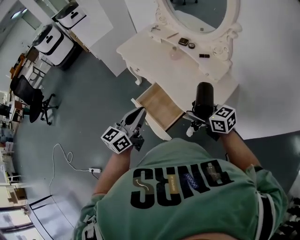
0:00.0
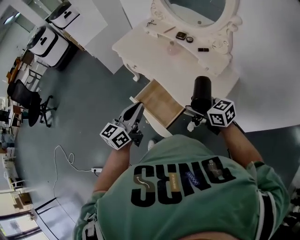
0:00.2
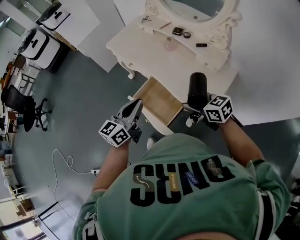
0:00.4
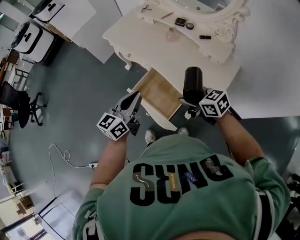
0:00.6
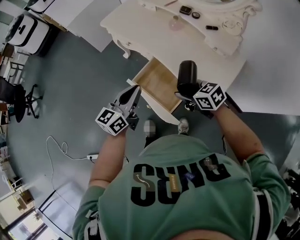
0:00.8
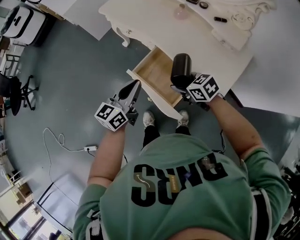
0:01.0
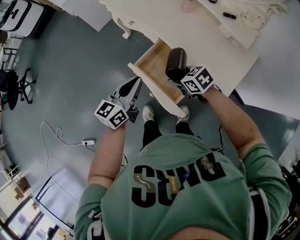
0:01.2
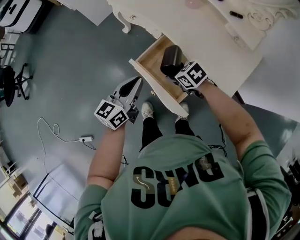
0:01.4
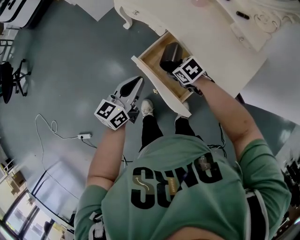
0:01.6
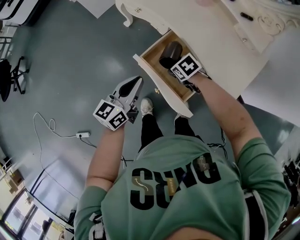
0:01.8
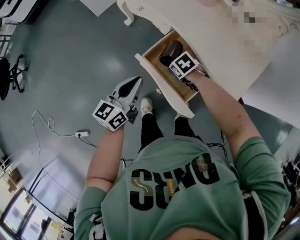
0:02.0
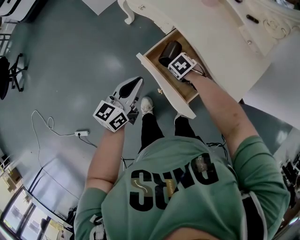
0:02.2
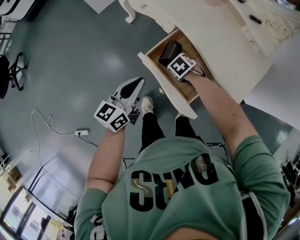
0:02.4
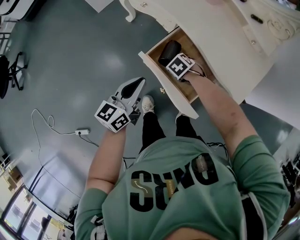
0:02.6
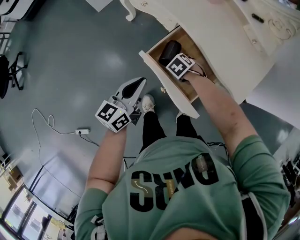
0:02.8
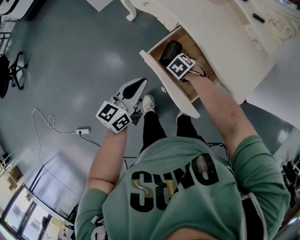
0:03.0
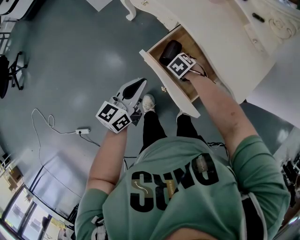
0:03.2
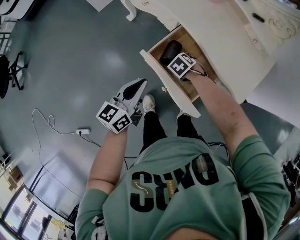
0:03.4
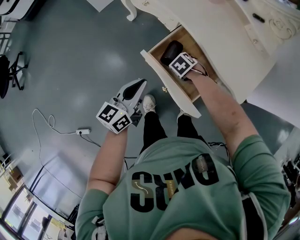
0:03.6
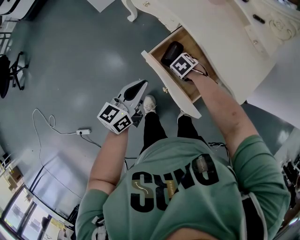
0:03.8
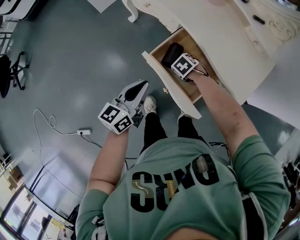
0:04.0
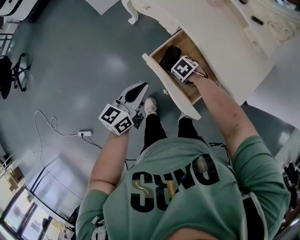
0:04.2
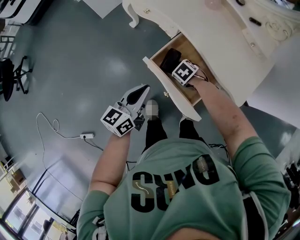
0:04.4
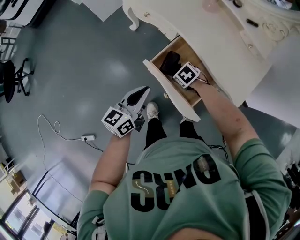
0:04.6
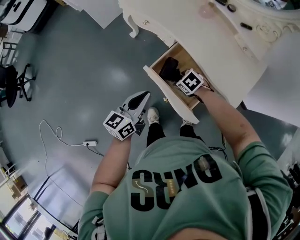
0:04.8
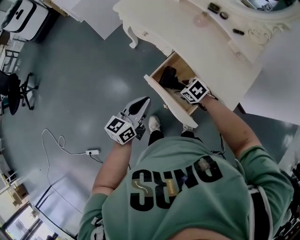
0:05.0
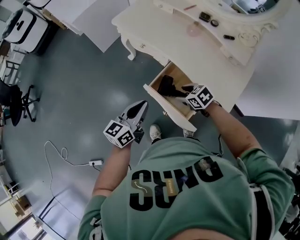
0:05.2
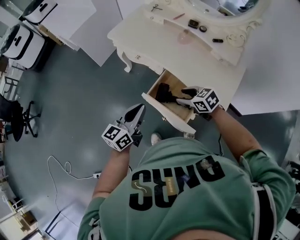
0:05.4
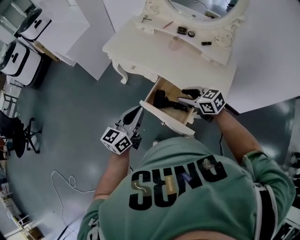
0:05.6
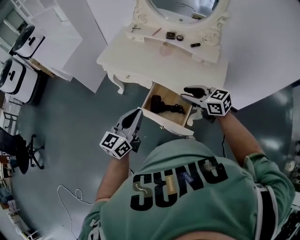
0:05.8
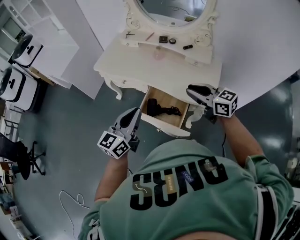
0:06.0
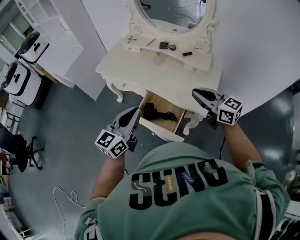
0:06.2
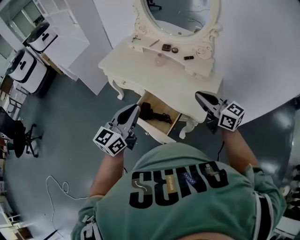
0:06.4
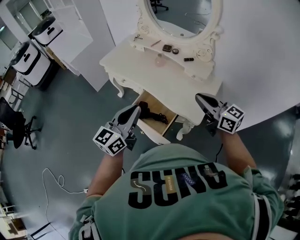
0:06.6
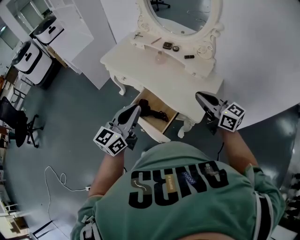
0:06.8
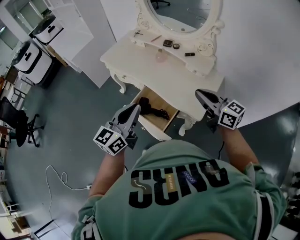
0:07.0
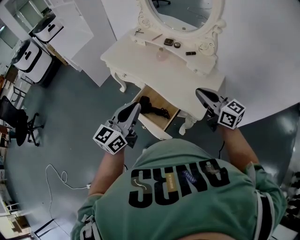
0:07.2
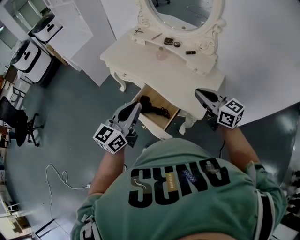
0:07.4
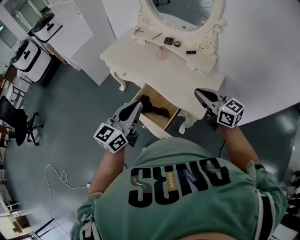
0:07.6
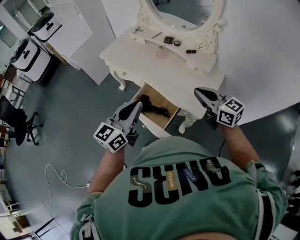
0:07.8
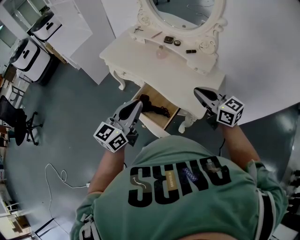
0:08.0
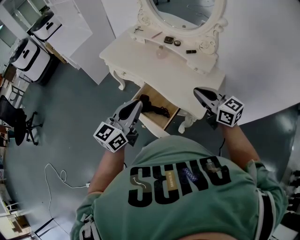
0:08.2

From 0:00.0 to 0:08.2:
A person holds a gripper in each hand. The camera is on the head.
From 0:00.0 to 0:01.6: Both grippers travel together downward, to the left and forward, about 30 cm. The right gripper points its fingers about 40 degrees further downward.
From 0:01.6 to 0:03.2: The left gripper ends up approximately 5 cm from where it was. Meanwhile the right gripper is displaced downward by some 10 cm, and turns by approximately 20 degrees.
From 0:03.2 to 0:05.0: The right gripper travels upward by some 15 cm, and changes its angle by some 20 degrees, while the left gripper shifts about 5 cm upward.
From 0:05.0 to 0:06.6: The right gripper is displaced upward by approximately 40 cm, angles its fingers upward, by roughly 60 degrees, and closes its fingers; the left gripper shifts roughly 25 cm upward, and turns by about 20 degrees.
From 0:06.6 to 0:08.2: There are only small adjustments of the grippers.

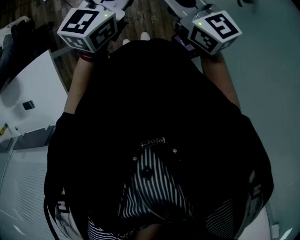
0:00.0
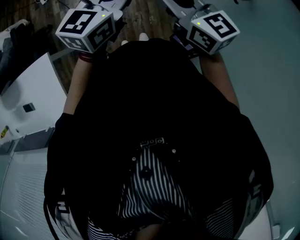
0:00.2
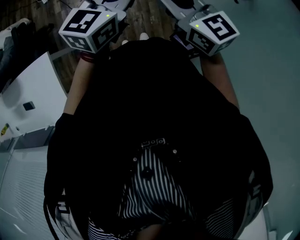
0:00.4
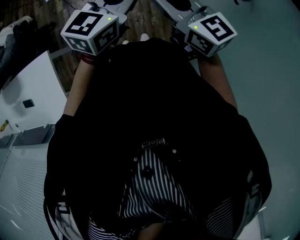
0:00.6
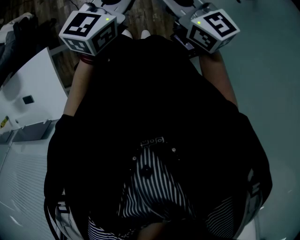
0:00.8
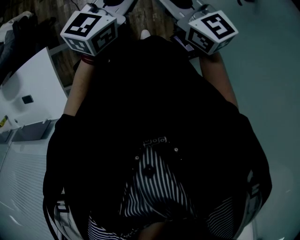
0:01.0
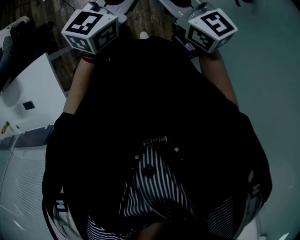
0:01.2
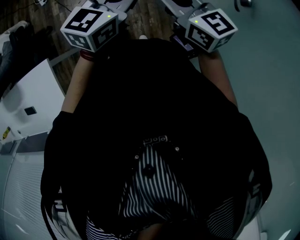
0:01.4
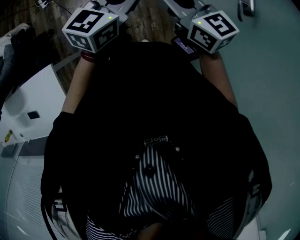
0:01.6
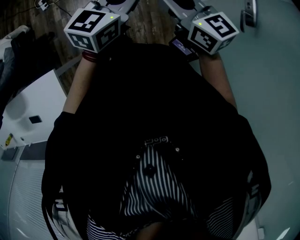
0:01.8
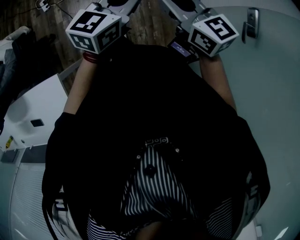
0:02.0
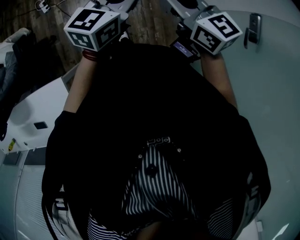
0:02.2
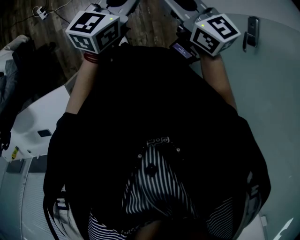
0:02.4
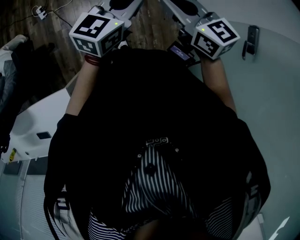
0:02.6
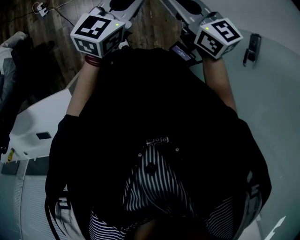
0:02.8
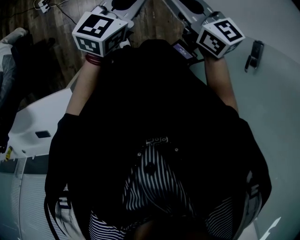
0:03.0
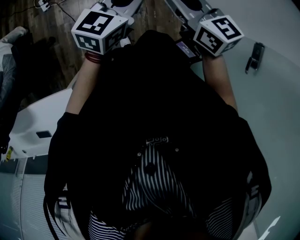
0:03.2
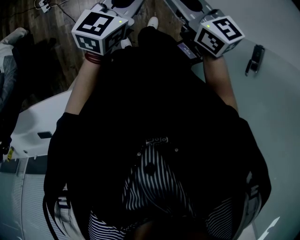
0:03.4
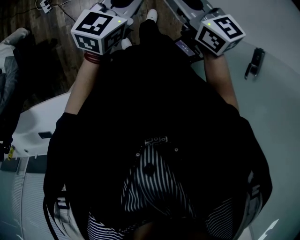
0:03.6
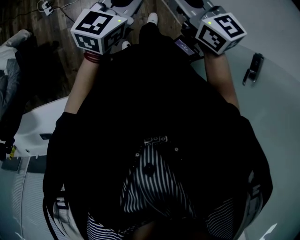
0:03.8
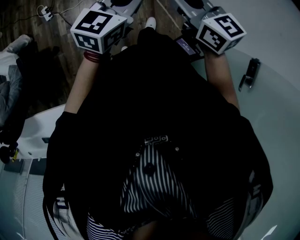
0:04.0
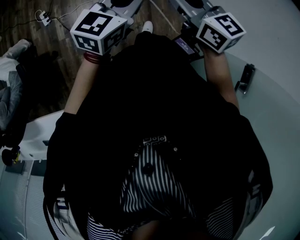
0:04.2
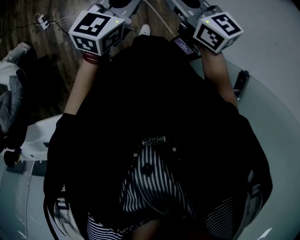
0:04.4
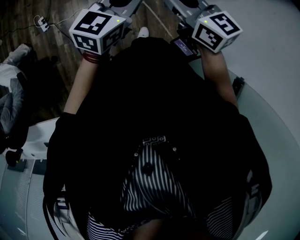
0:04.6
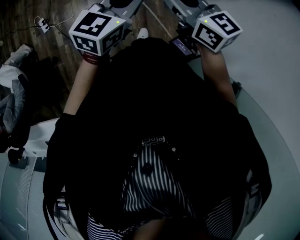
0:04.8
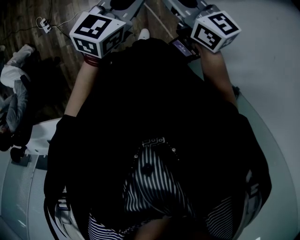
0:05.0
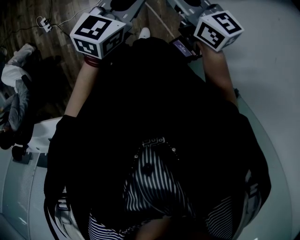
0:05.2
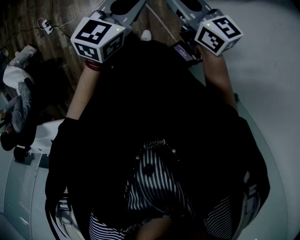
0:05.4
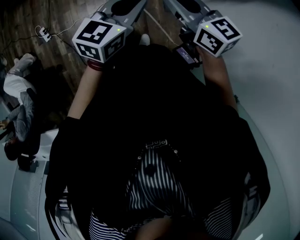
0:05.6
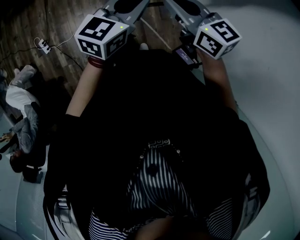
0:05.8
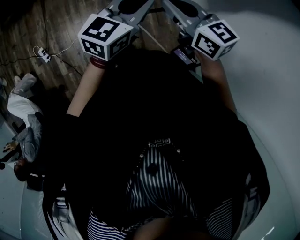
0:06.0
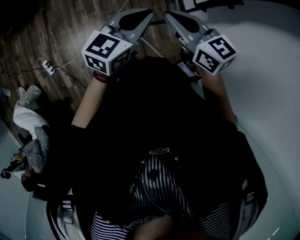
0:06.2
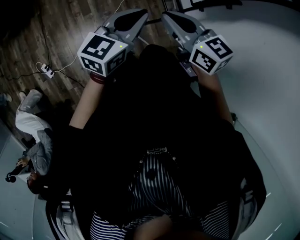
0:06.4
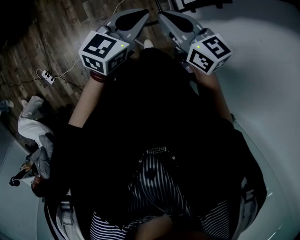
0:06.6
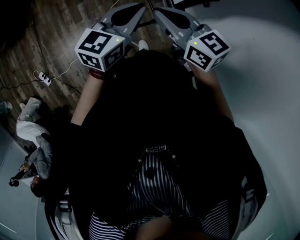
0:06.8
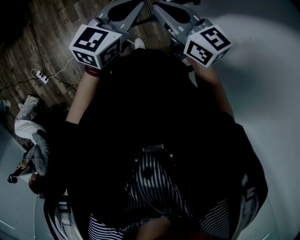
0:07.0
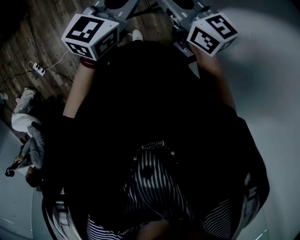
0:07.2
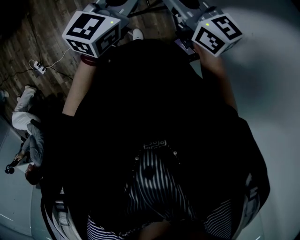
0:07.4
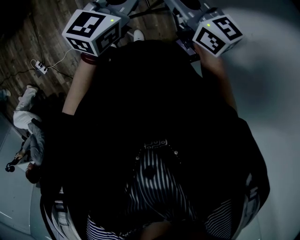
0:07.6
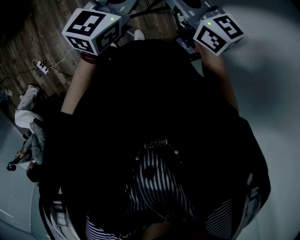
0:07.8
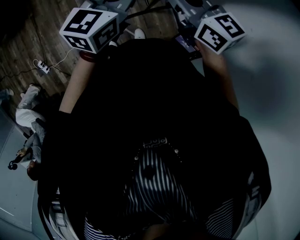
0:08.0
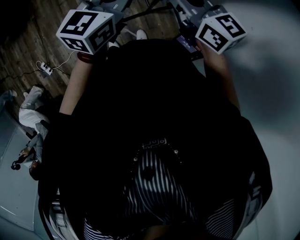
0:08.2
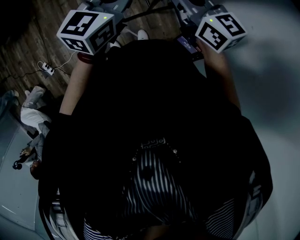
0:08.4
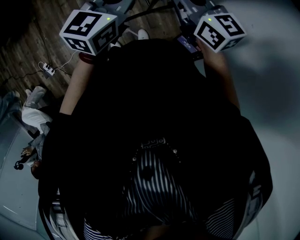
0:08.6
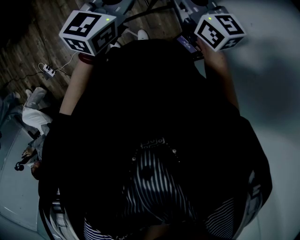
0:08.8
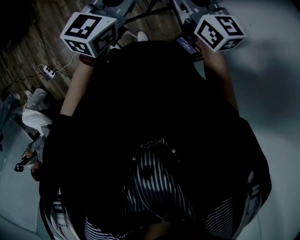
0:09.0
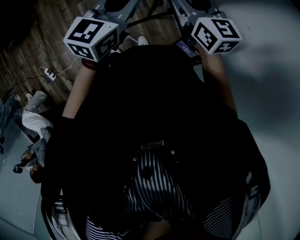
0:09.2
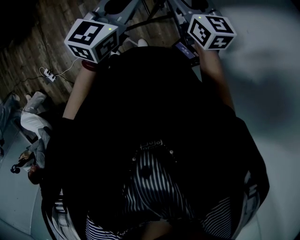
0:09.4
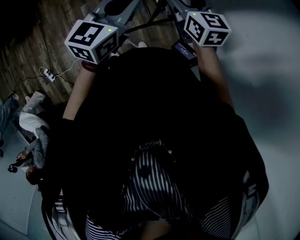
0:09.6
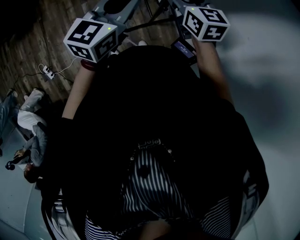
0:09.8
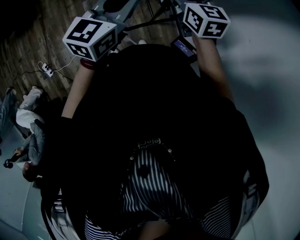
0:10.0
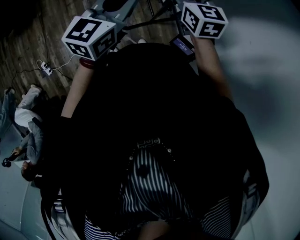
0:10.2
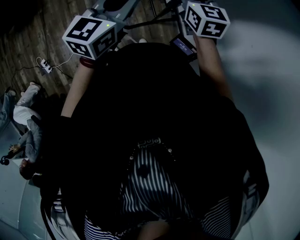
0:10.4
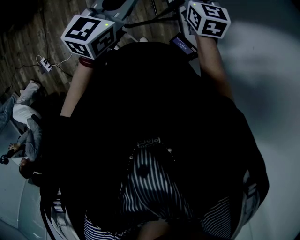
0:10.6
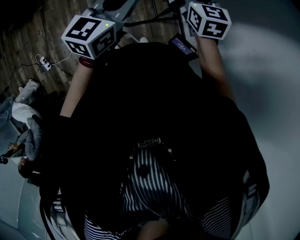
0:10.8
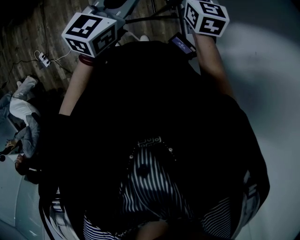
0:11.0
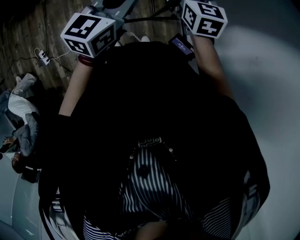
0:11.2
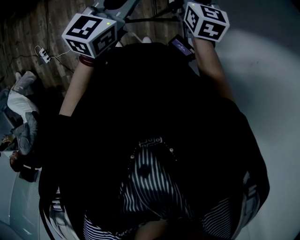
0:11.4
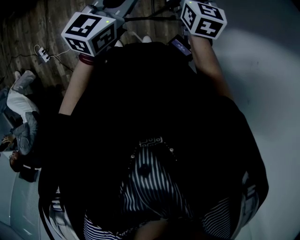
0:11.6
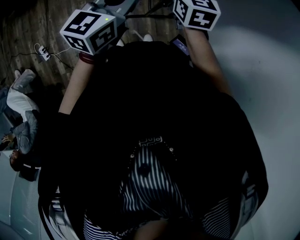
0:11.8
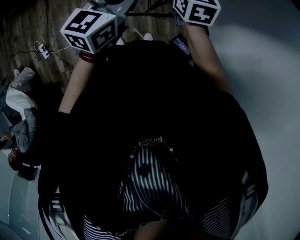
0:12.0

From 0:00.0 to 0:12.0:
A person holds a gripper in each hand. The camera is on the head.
From 0:00.0 to 0:01.6: The two grippers go approximately 10 cm forward.
From 0:01.6 to 0:03.0: Both grippers travel together forward and to the left, some 30 cm.
From 0:03.0 to 0:04.4: Both grippers travel together forward and to the right, about 20 cm.
From 0:04.4 to 0:06.0: The two grippers go some 15 cm forward and to the right.
From 0:06.0 to 0:07.6: The right gripper heads to the right and forward, covering about 20 cm, while the left gripper heads forward and to the right, covering some 20 cm.
From 0:07.6 to 0:09.0: The right gripper moves to the right, some 10 cm, and opens its fingers.
From 0:09.0 to 0:10.4: The right gripper is displaced forward and to the left by about 10 cm, while the left gripper heads to the left, covering roughly 10 cm.
From 0:10.4 to 0:12.0: The left gripper moves to the left, roughly 5 cm; the right gripper goes some 10 cm to the left.

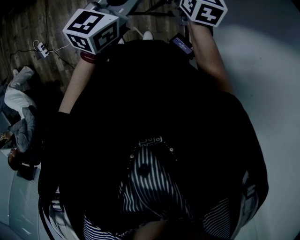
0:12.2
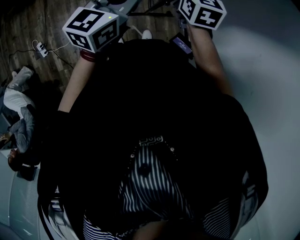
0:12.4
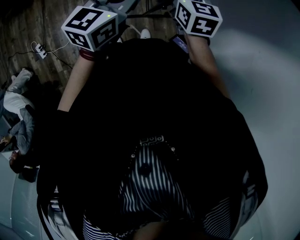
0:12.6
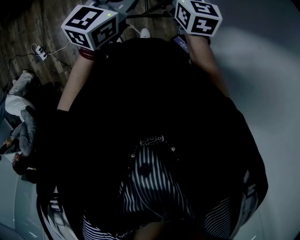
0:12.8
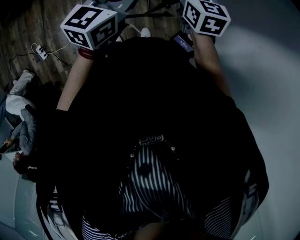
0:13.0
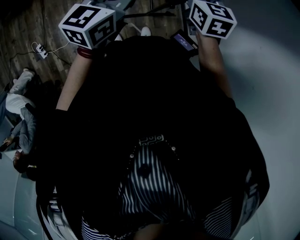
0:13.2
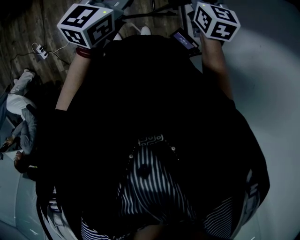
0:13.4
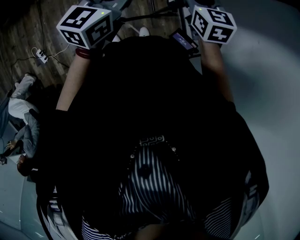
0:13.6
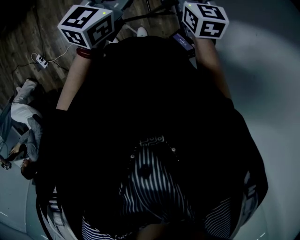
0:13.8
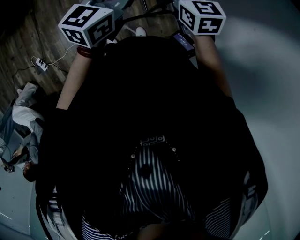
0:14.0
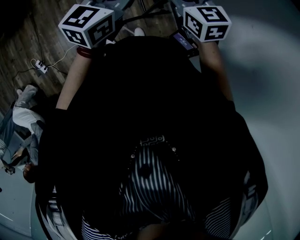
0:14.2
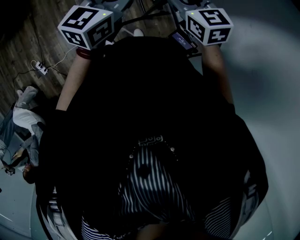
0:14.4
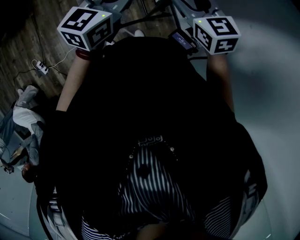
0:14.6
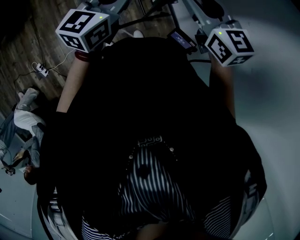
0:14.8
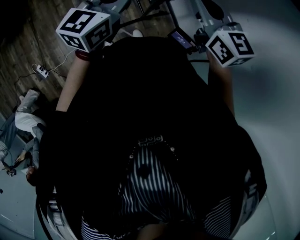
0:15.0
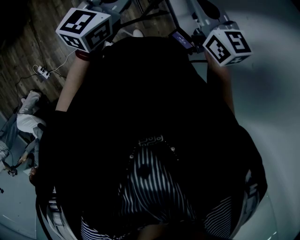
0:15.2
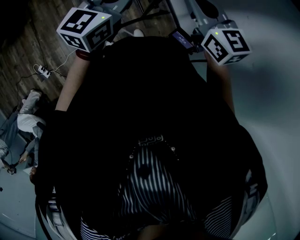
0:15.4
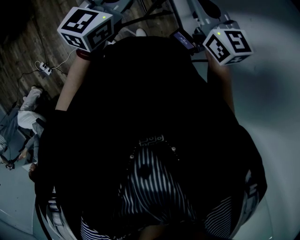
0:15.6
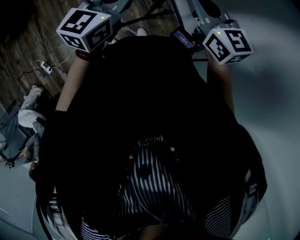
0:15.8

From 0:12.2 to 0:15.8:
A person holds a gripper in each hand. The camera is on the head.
From 0:12.2 to 0:14.0: The left gripper moves to the right, some 5 cm. The right gripper heads to the right and backward, covering approximately 10 cm.
From 0:14.0 to 0:15.8: The right gripper moves to the right and upward, roughly 10 cm, and closes.
